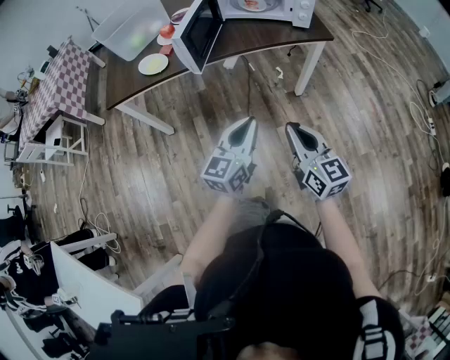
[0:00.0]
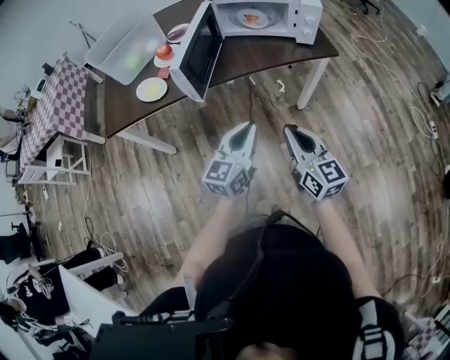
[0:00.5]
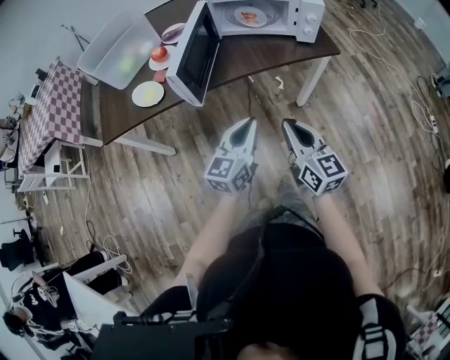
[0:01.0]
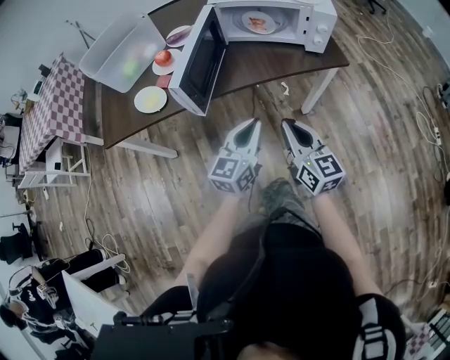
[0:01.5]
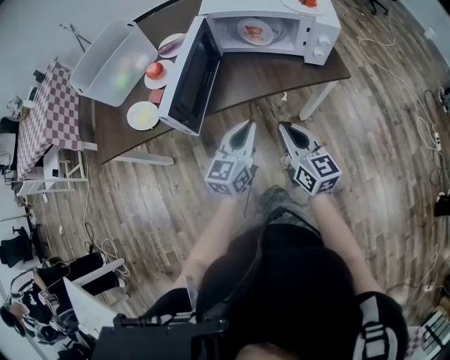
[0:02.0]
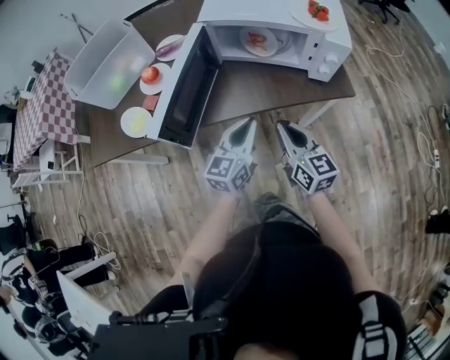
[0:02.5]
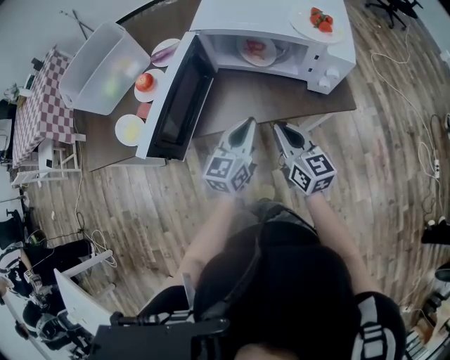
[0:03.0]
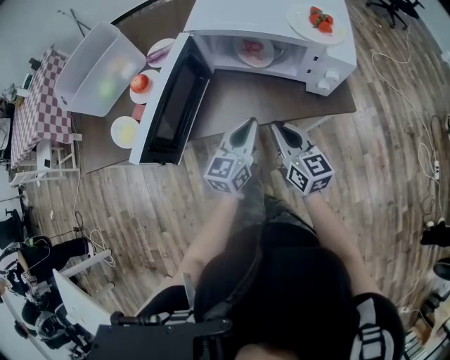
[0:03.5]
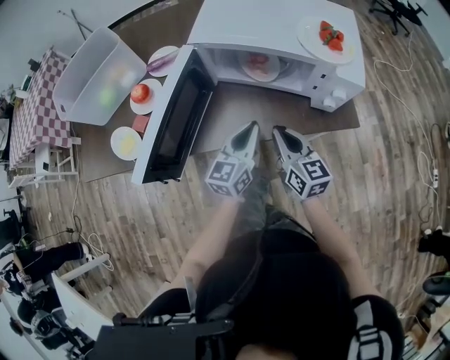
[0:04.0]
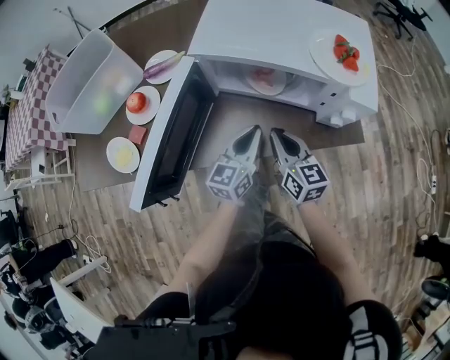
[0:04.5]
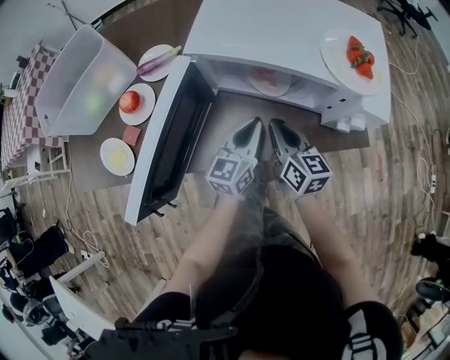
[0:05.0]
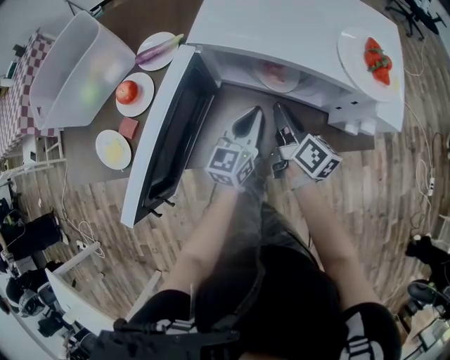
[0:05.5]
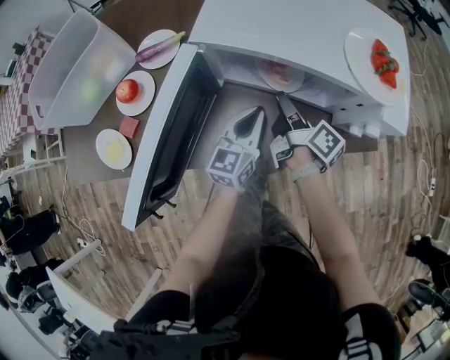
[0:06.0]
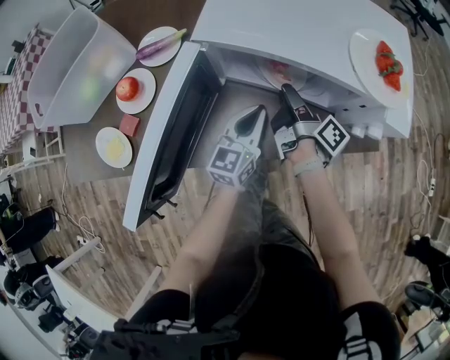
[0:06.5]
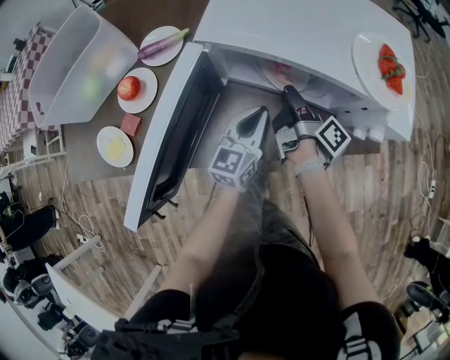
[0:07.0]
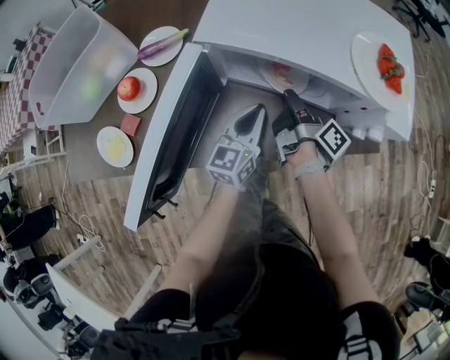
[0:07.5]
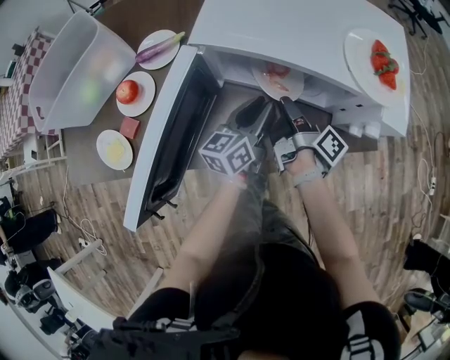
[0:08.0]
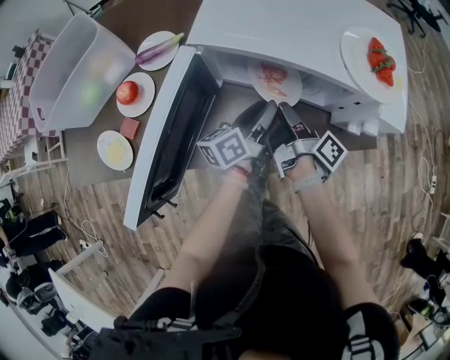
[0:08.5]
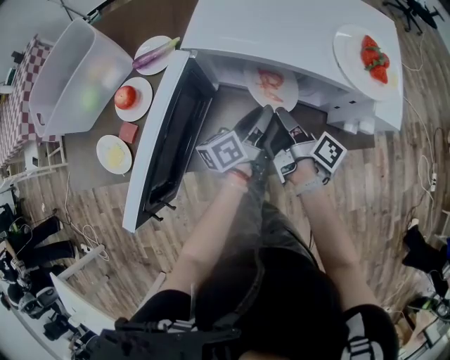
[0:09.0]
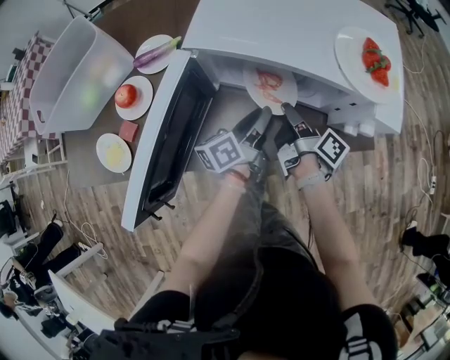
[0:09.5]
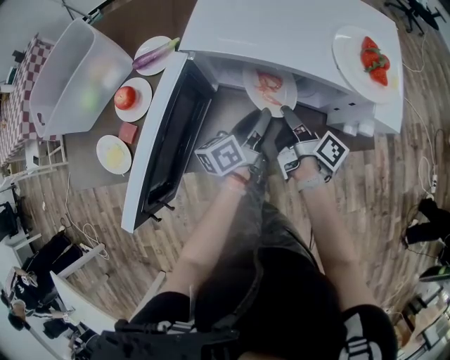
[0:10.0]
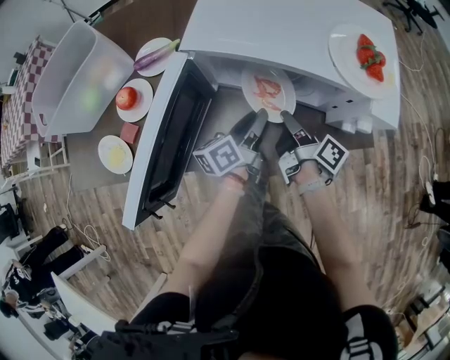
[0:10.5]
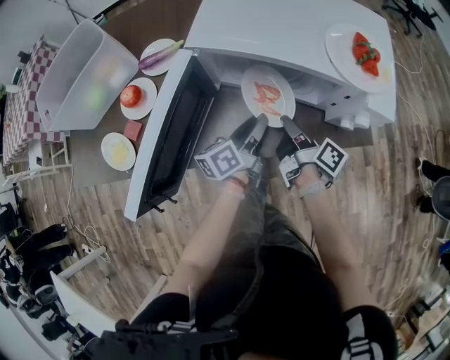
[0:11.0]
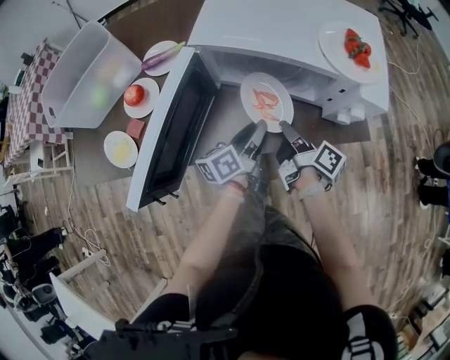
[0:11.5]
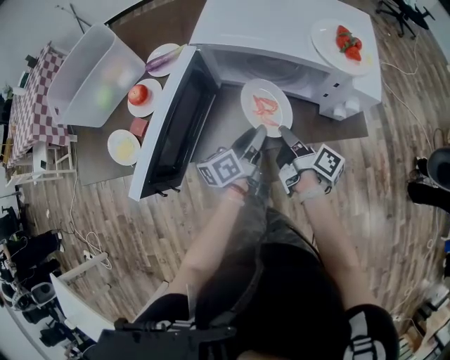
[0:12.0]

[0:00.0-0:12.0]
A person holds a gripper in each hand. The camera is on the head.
0:00.0 to 0:02.0: The two grippers go approximately 30 cm forward.
0:02.0 to 0:04.0: Both grippers travel together forward, some 20 cm.
0:04.0 to 0:06.0: The right gripper is displaced forward by about 15 cm, and rotates around the line of its fingers by approximately 60 degrees, clockwise from behind. The left gripper shifts approximately 10 cm forward and downward.
0:06.0 to 0:08.0: The left gripper rotates approximately 20 degrees, and opens its fingers.
0:08.0 to 0:10.0: The left gripper rotates some 20 degrees.
0:10.0 to 0:12.0: Both grippers move backward, about 10 cm.

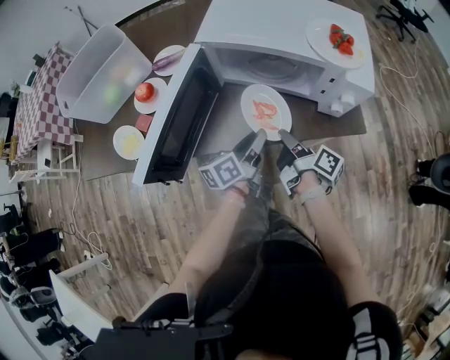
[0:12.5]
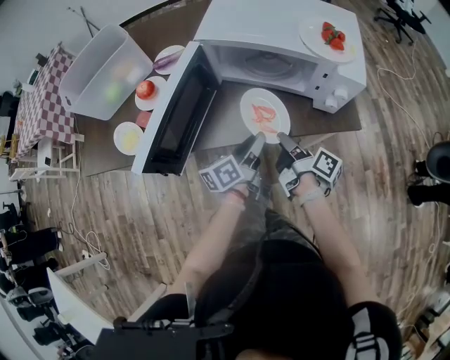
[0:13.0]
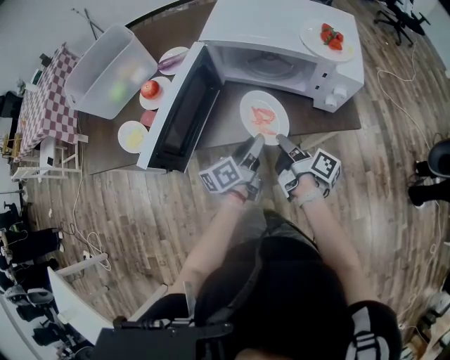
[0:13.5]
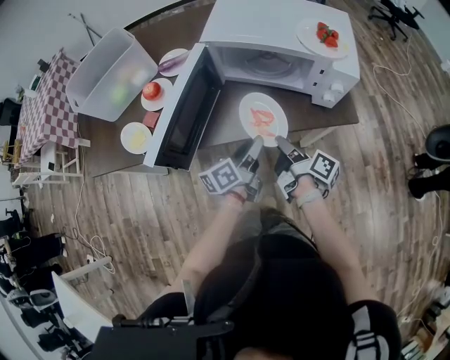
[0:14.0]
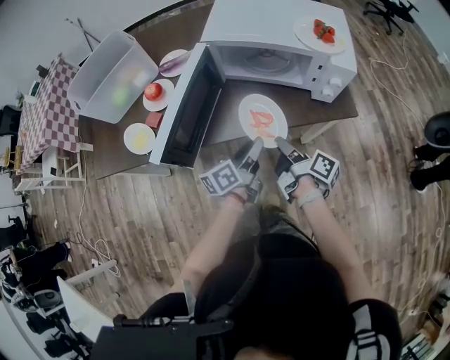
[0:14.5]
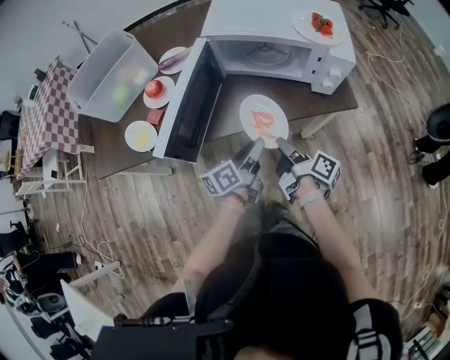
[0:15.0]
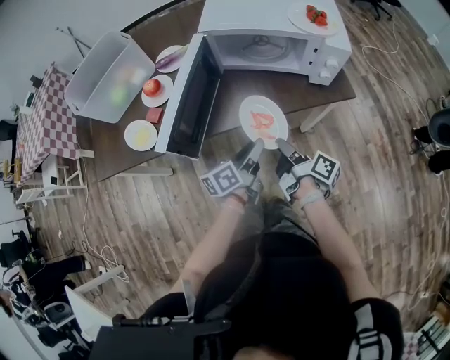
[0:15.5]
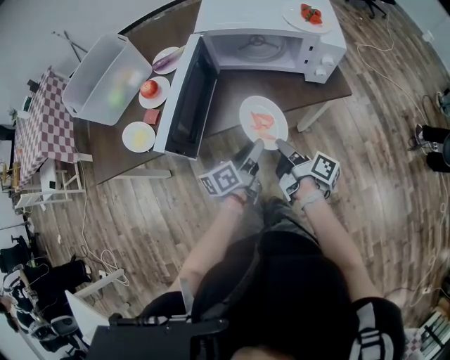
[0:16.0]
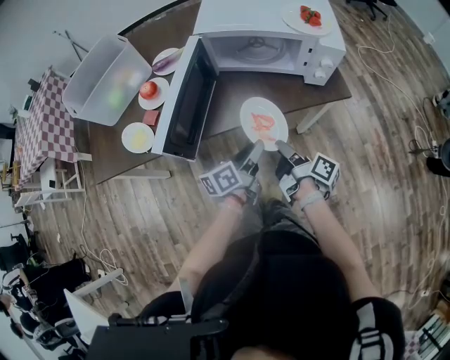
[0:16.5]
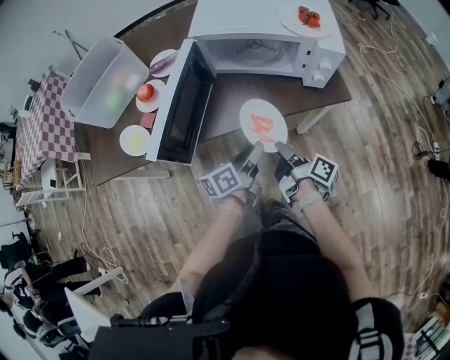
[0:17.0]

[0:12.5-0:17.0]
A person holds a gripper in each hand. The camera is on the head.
0:12.5 to 0:14.5: The two grippers go some 10 cm backward.
0:14.5 to 0:17.0: The right gripper changes place by about 5 cm.

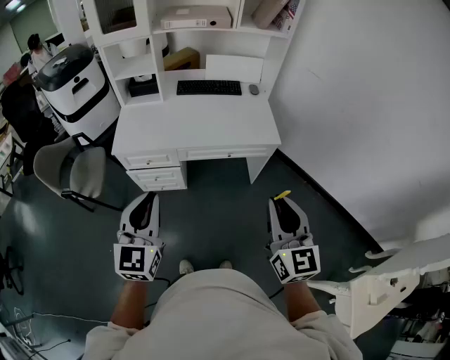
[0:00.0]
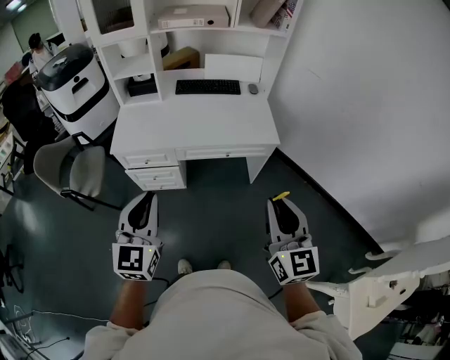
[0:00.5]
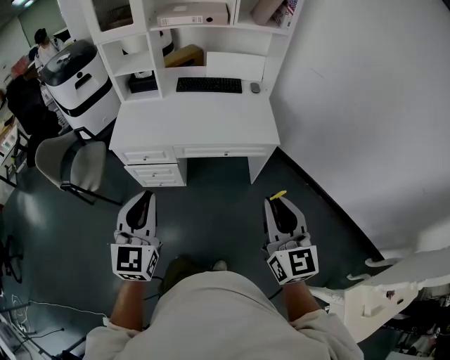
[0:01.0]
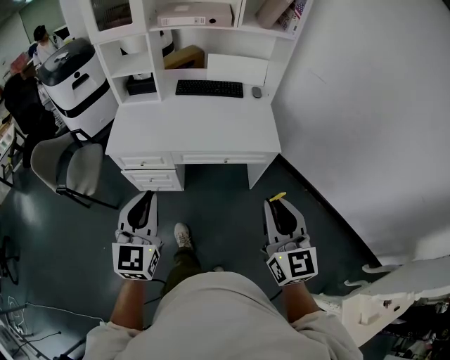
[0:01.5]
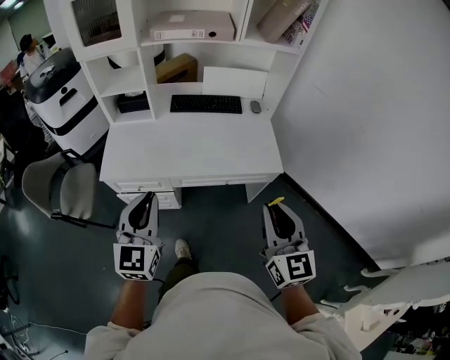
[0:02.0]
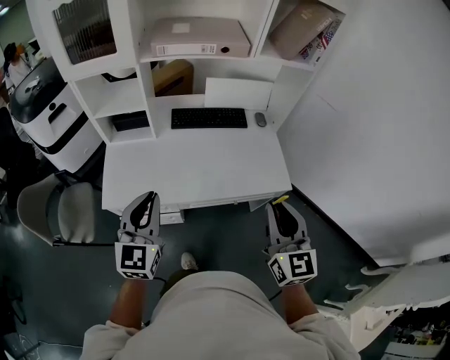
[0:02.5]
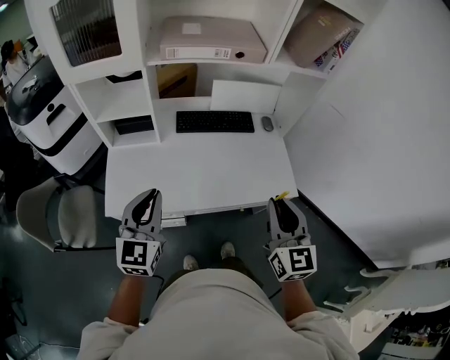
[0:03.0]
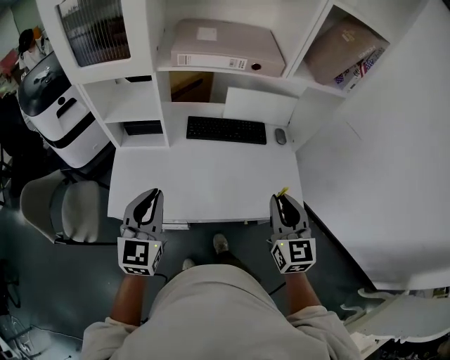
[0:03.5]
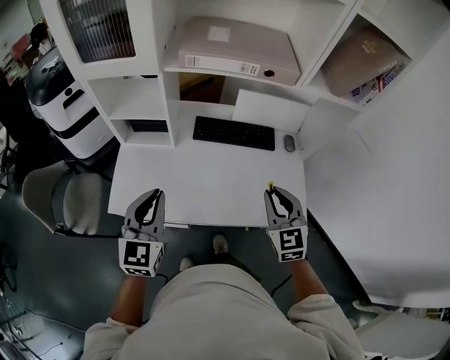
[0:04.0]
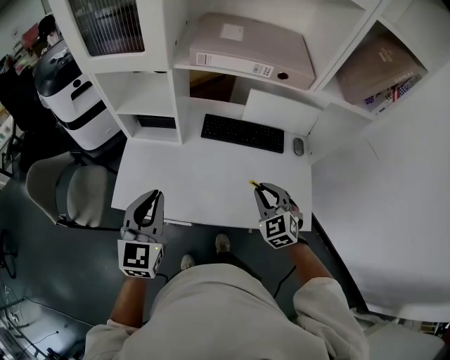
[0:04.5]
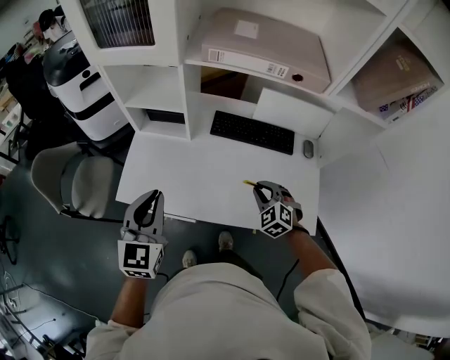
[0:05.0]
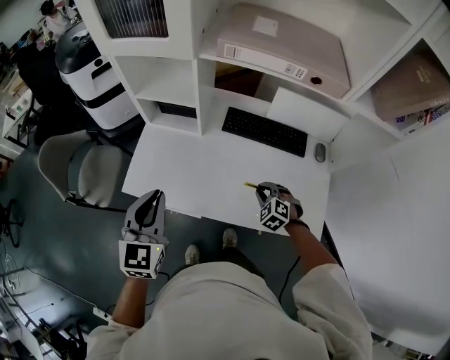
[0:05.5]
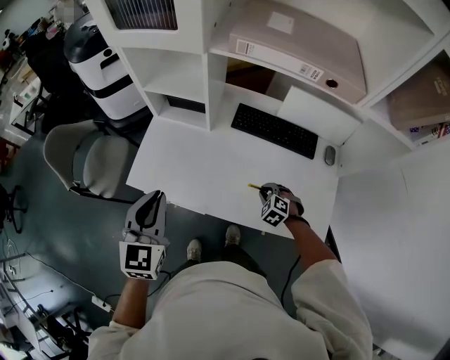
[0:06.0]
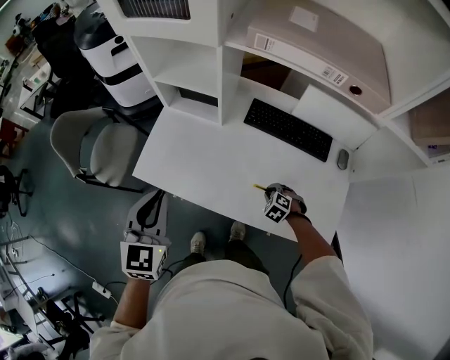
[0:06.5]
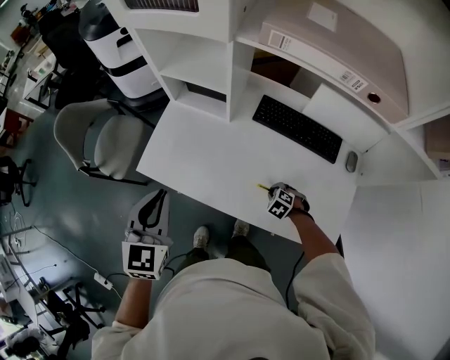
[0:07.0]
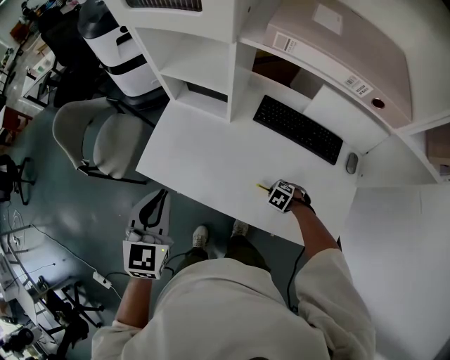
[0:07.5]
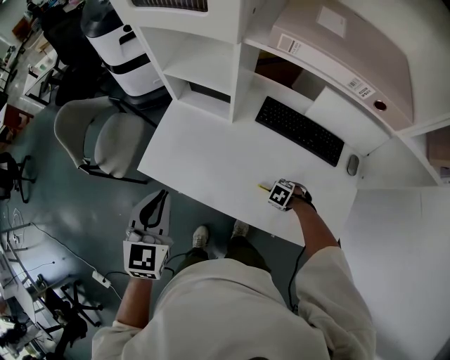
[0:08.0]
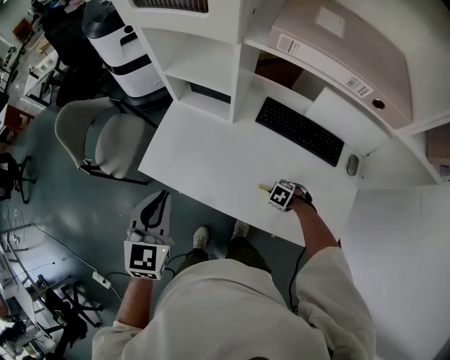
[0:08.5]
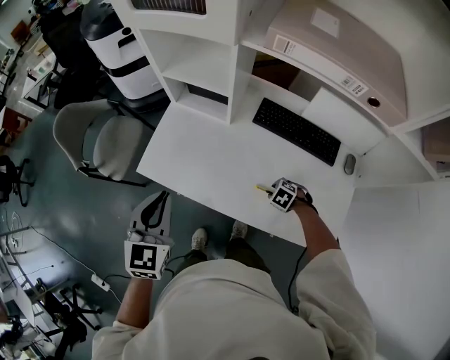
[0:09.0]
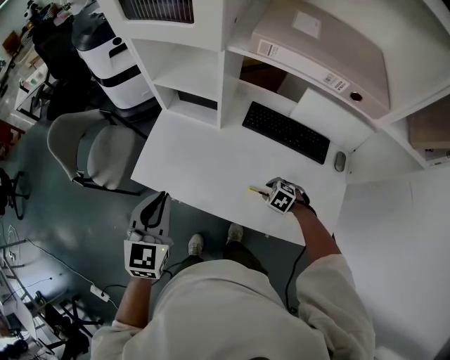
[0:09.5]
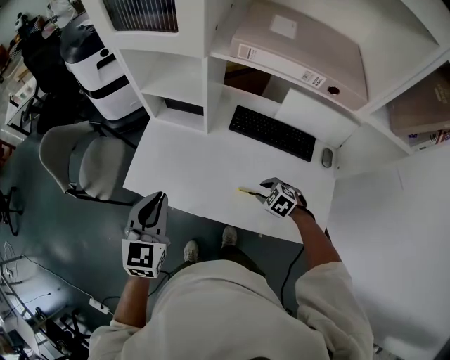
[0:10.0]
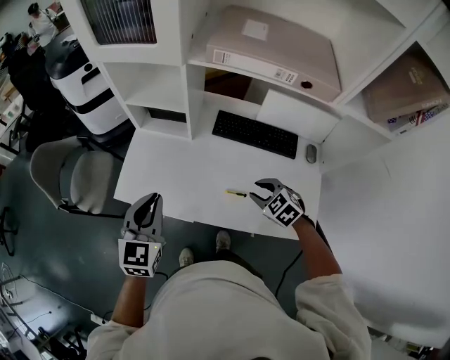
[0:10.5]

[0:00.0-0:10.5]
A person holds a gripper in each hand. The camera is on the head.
0:00.0 to 0:02.0: Both grippers move forward, approximately 20 cm.
0:02.0 to 0:04.0: The grippers both shift forward by about 30 cm. The right gripper swivels about 20 degrees.
0:04.0 to 0:06.5: The left gripper is displaced to the left by approximately 5 cm, and turns by roughly 20 degrees. Meanwhile the right gripper travels downward by approximately 35 cm, and tilts its fingers about 50 degrees downward.
0:06.5 to 0:08.5: The right gripper rotates some 20 degrees.
0:08.5 to 0:10.5: The right gripper goes approximately 25 cm upward, and changes its angle by approximately 40 degrees. The left gripper shifts by about 5 cm.
